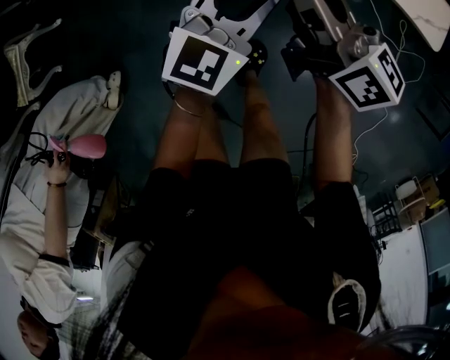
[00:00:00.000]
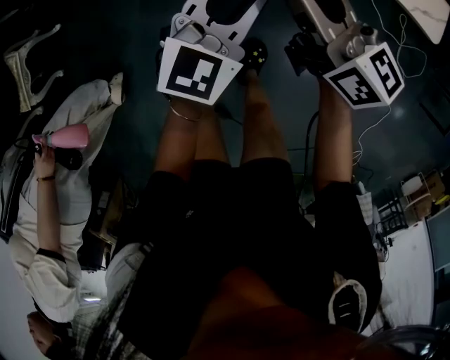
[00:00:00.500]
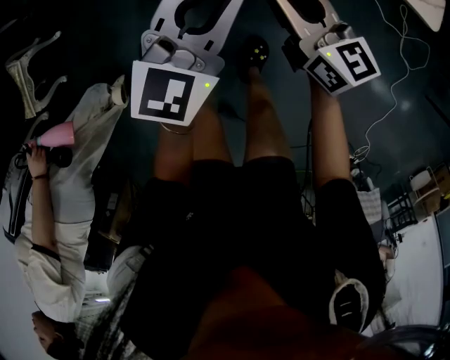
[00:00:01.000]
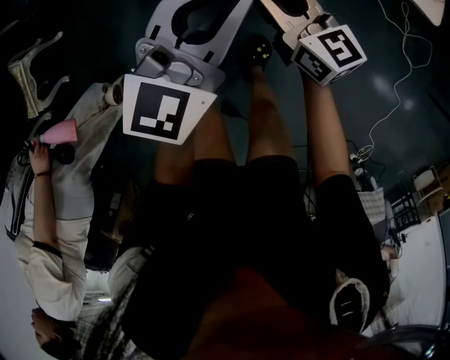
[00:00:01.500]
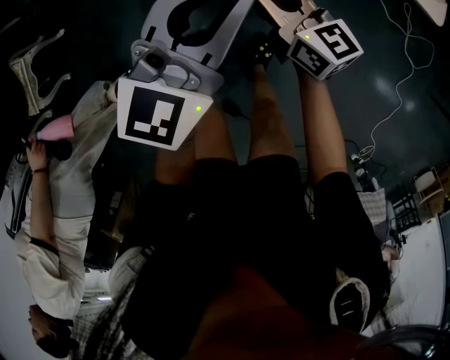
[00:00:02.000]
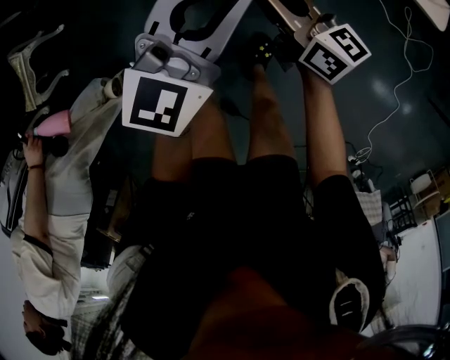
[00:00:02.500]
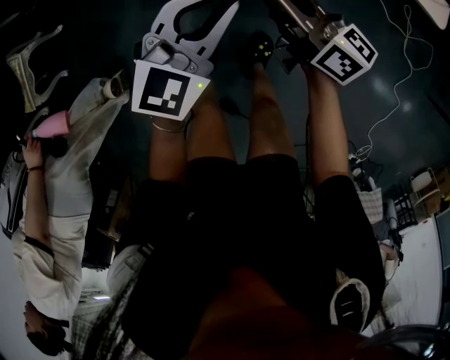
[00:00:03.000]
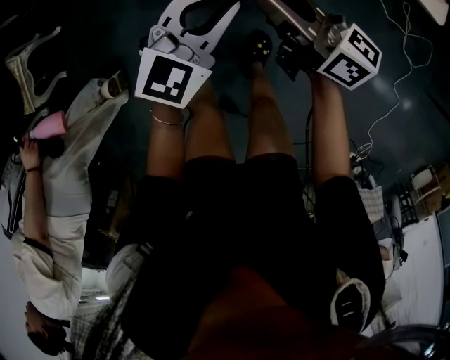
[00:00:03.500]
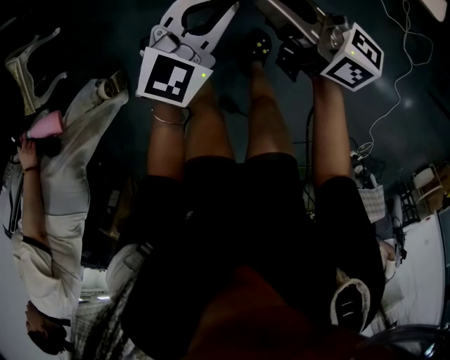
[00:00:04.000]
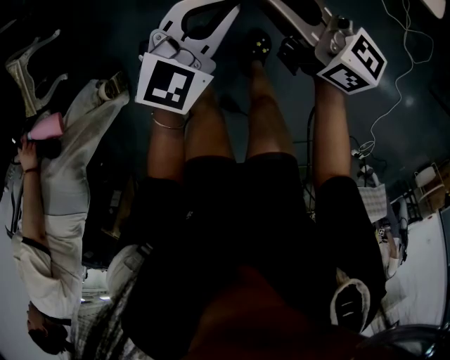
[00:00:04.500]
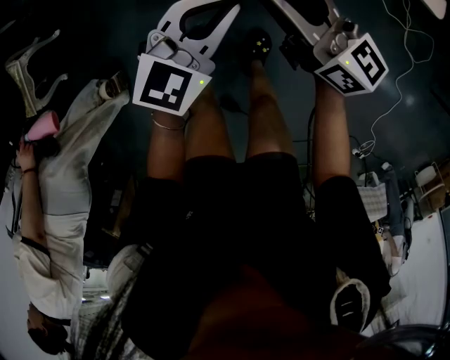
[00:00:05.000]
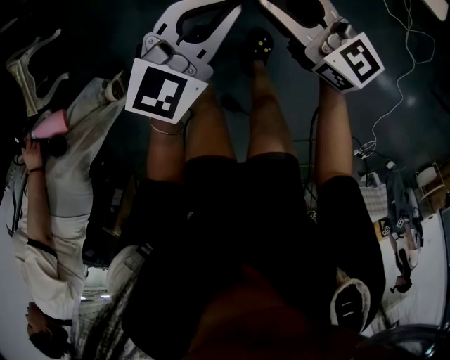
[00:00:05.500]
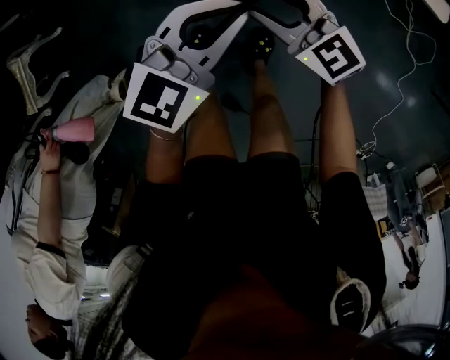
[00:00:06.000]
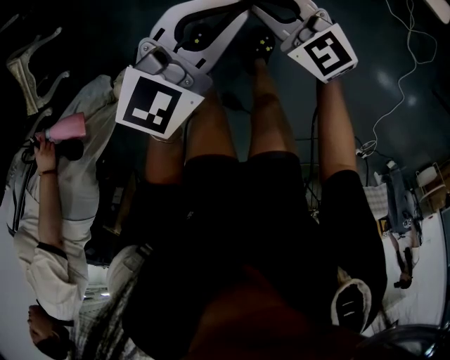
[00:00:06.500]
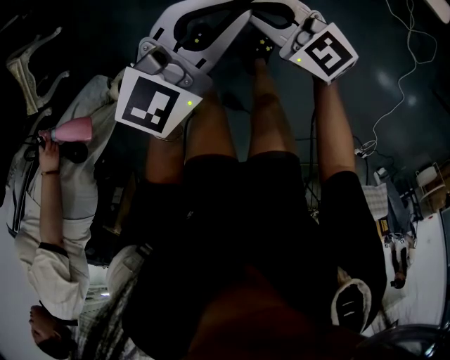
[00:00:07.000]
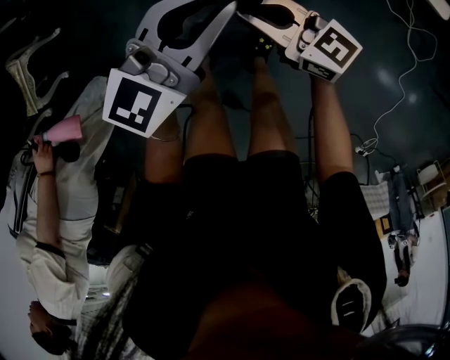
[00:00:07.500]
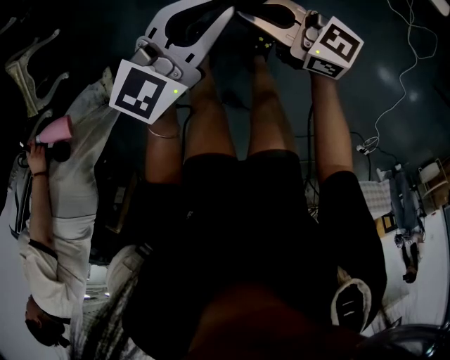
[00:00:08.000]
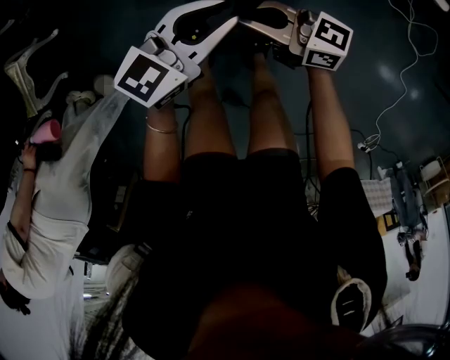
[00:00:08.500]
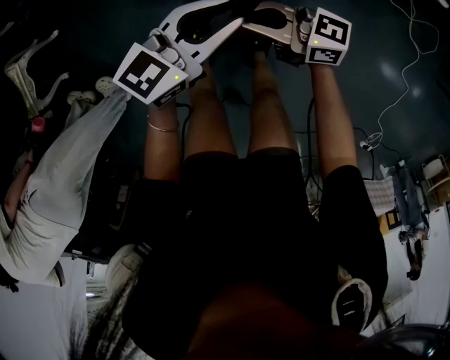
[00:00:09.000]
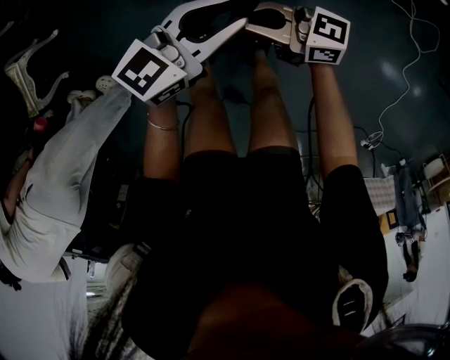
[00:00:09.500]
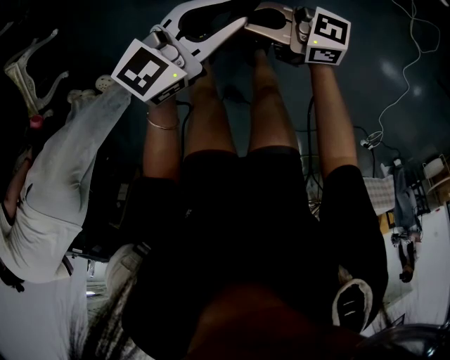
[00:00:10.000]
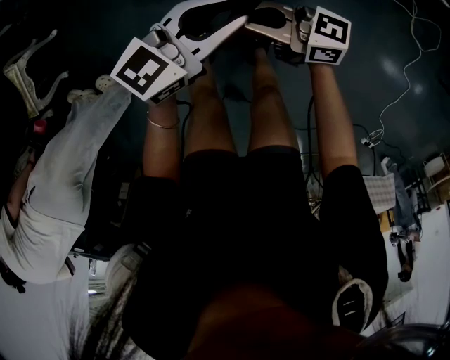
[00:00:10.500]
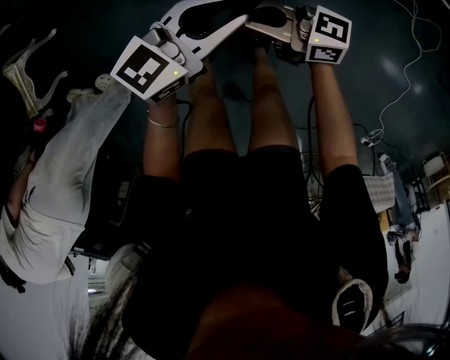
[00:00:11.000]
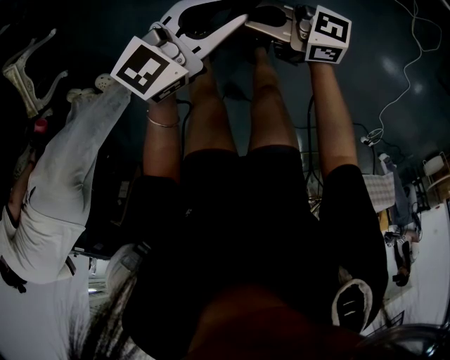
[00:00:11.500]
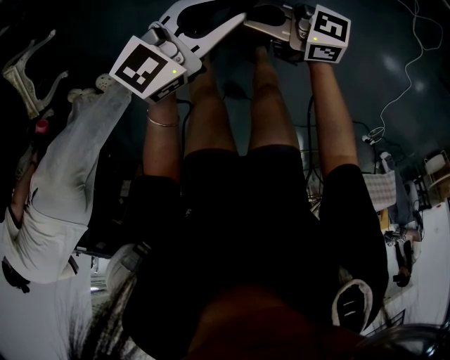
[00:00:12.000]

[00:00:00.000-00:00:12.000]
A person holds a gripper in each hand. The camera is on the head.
00:00:00.000 to 00:00:02.000: The right gripper shifts roughly 10 cm downward; the left gripper goes some 10 cm upward.
00:00:02.000 to 00:00:04.000: The right gripper heads upward, covering some 5 cm, and swivels roughly 30 degrees. Meanwhile the left gripper goes approximately 10 cm downward, and swivels roughly 20 degrees.
00:00:04.000 to 00:00:06.000: The right gripper travels downward by some 5 cm, twists roughly 40 degrees counterclockwise, seen from behind, and opens, while the left gripper changes place by about 5 cm.
00:00:06.000 to 00:00:08.000: The right gripper swivels roughly 40 degrees, and closes its fingers.
00:00:08.000 to 00:00:10.000: The grippers move only a little.
00:00:10.000 to 00:00:12.000: Both grippers stay put.

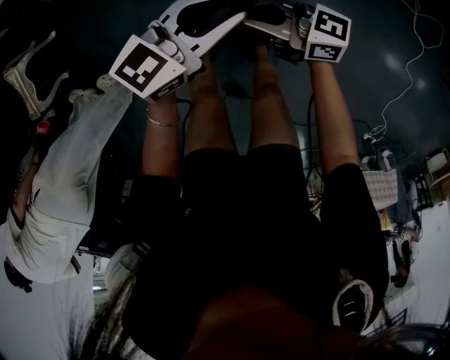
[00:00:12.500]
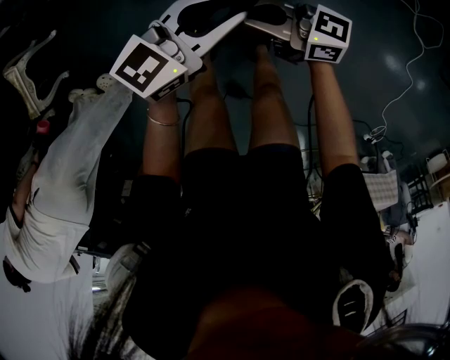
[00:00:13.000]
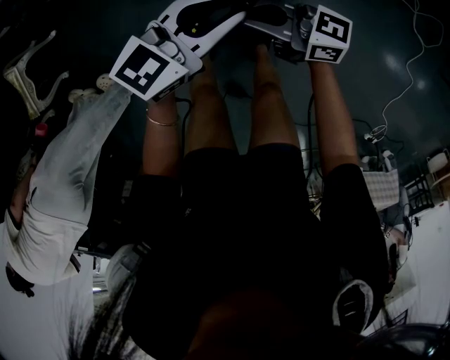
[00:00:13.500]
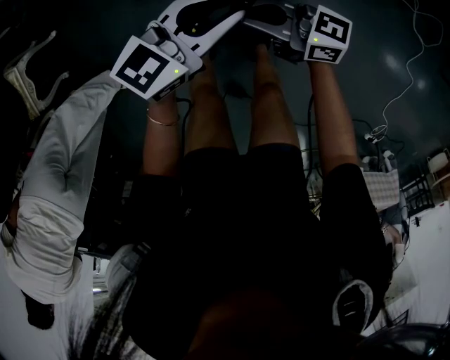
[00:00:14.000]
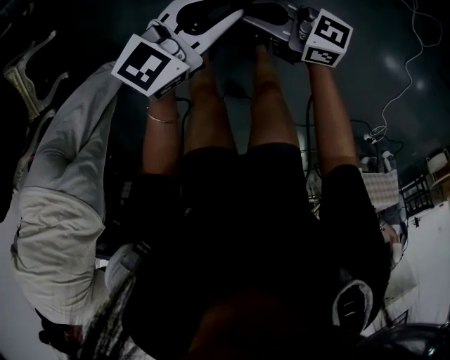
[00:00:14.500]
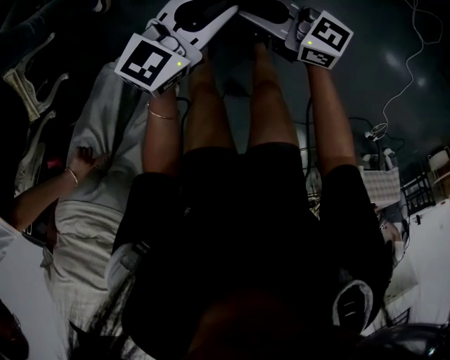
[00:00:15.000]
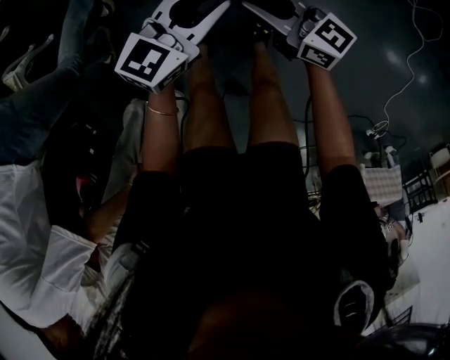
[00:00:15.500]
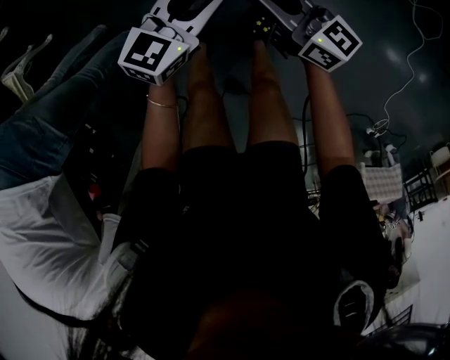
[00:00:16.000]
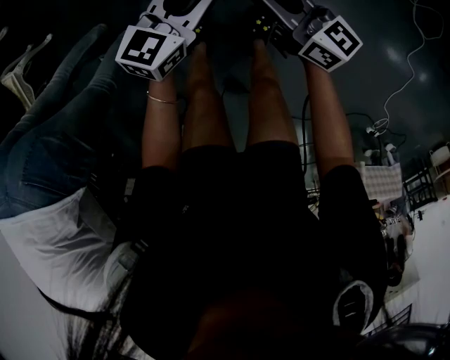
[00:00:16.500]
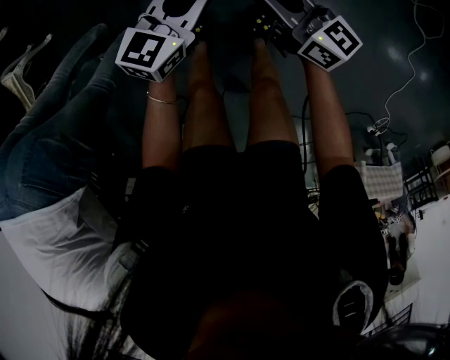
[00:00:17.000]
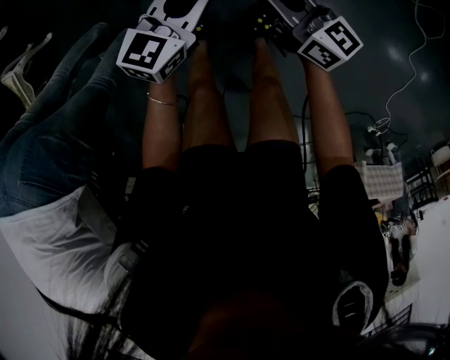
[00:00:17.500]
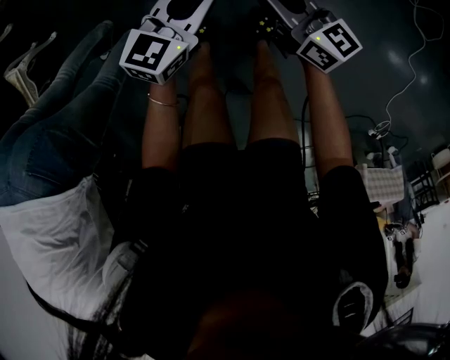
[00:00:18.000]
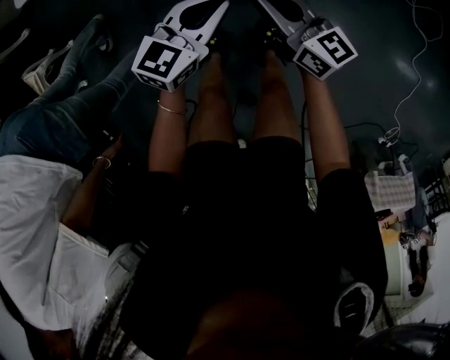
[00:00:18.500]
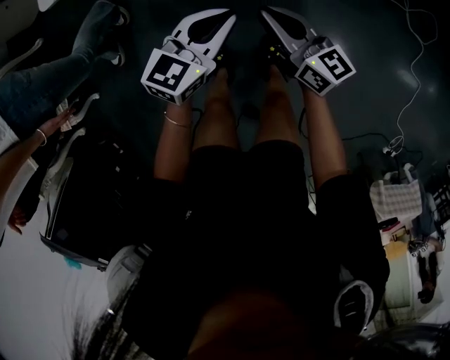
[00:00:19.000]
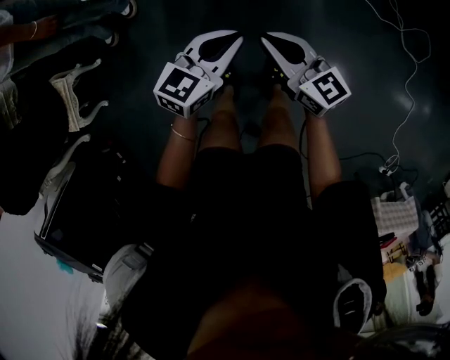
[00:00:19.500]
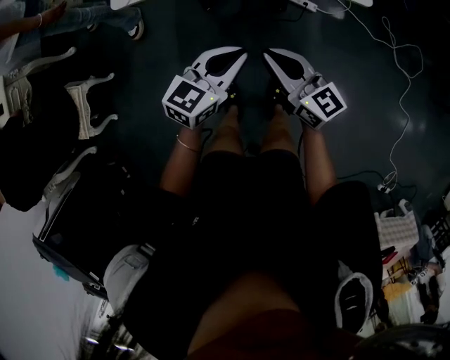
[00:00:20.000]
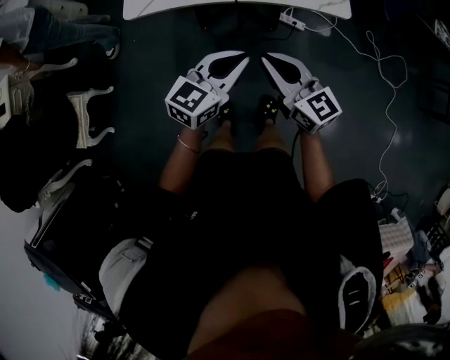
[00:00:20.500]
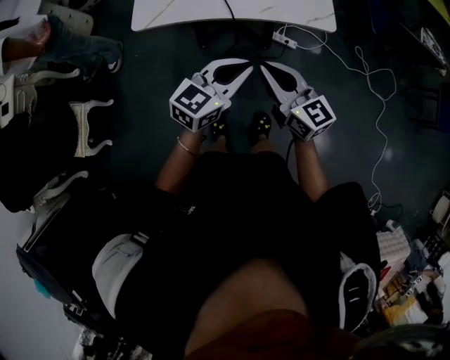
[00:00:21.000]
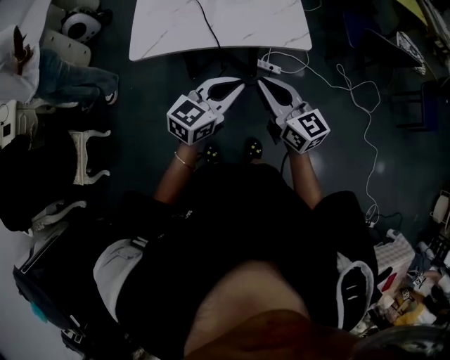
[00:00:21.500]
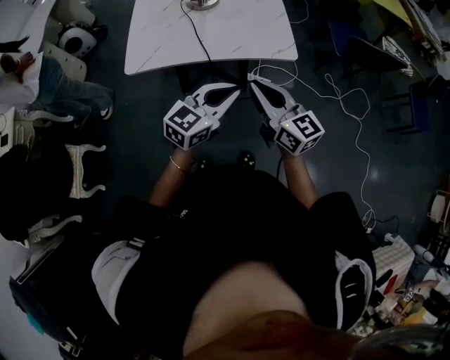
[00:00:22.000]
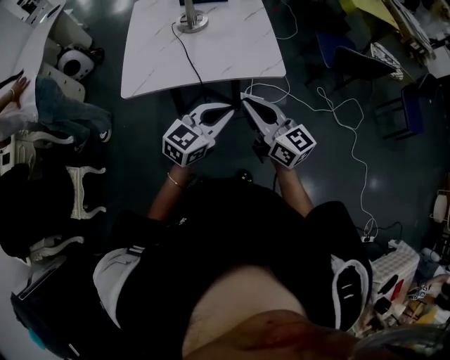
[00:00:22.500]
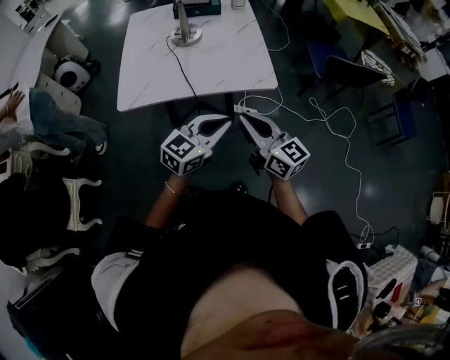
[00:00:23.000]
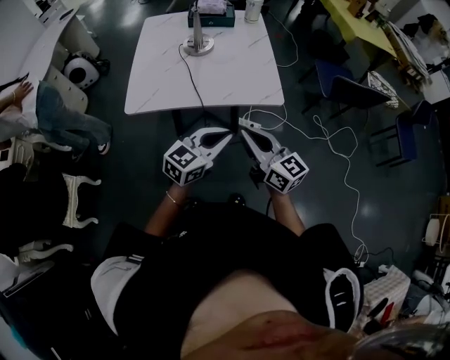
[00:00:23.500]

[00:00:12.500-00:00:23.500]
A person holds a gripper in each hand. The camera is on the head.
00:00:12.500 to 00:00:14.500: There are only small adjustments of the grippers.
00:00:14.500 to 00:00:16.000: The right gripper changes its angle by about 20 degrees, while the left gripper shifts about 5 cm downward.
00:00:16.000 to 00:00:18.000: The grippers stay close to where they were, moving slightly.
00:00:18.000 to 00:00:20.000: The two grippers go approximately 20 cm upward.
00:00:20.000 to 00:00:21.500: The right gripper moves upward, approximately 15 cm. The left gripper travels upward and to the right by some 15 cm.
00:00:21.500 to 00:00:23.500: There are only small adjustments of the grippers.

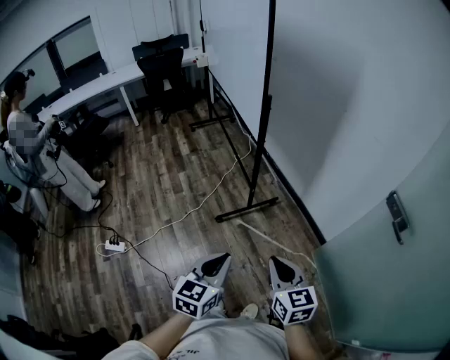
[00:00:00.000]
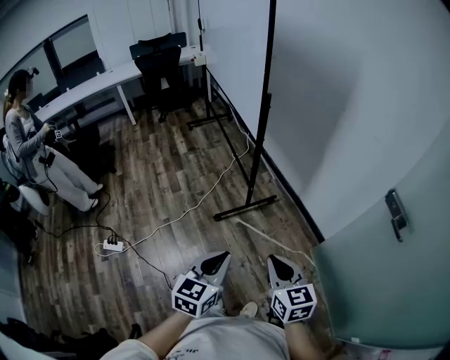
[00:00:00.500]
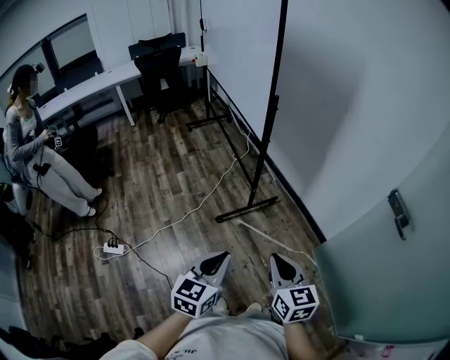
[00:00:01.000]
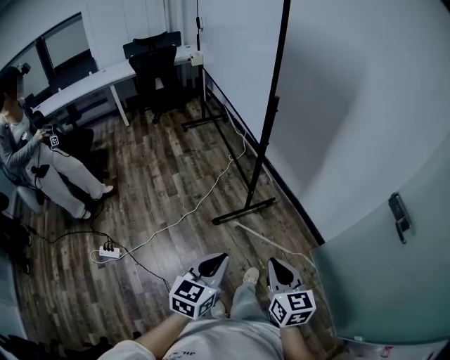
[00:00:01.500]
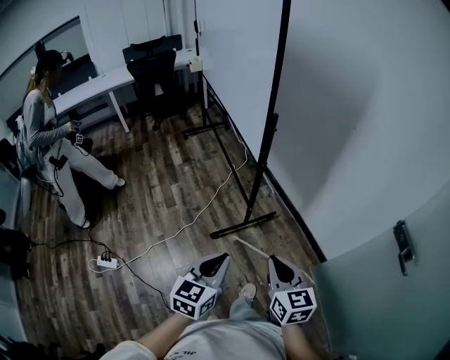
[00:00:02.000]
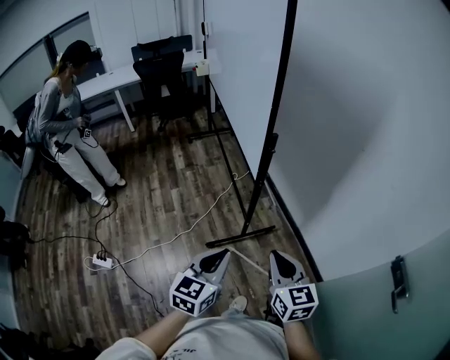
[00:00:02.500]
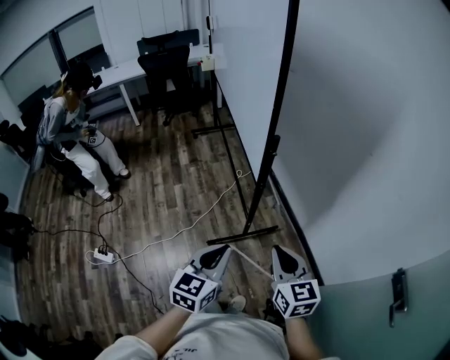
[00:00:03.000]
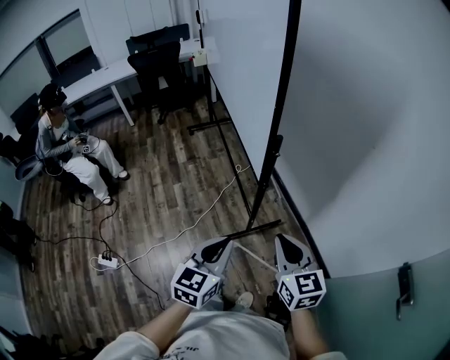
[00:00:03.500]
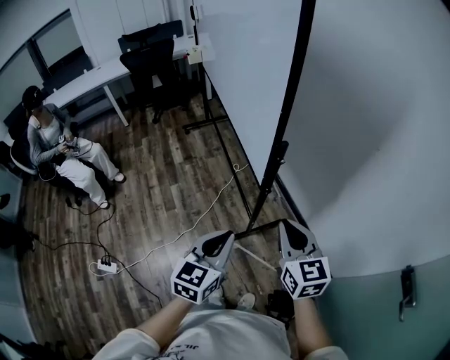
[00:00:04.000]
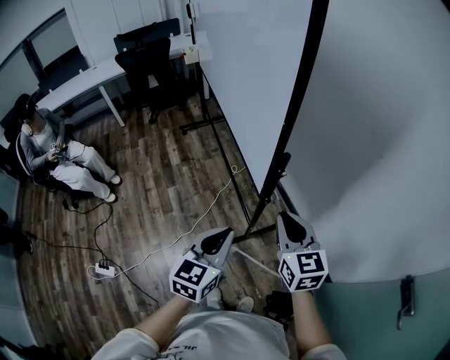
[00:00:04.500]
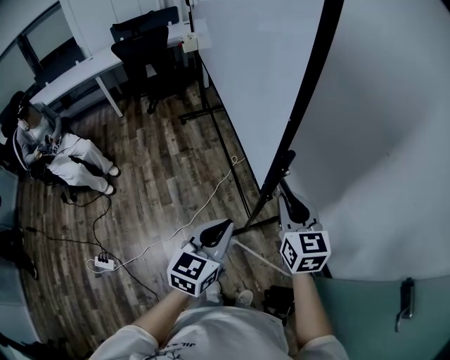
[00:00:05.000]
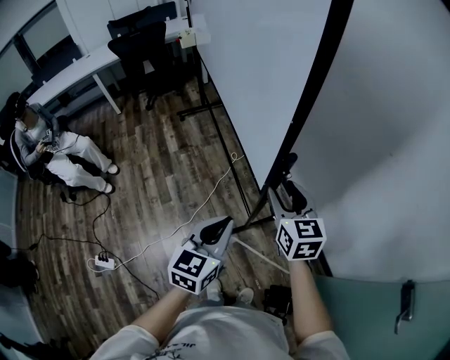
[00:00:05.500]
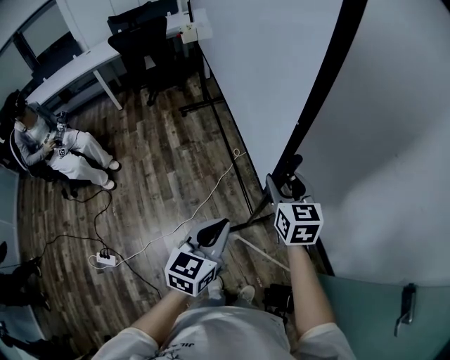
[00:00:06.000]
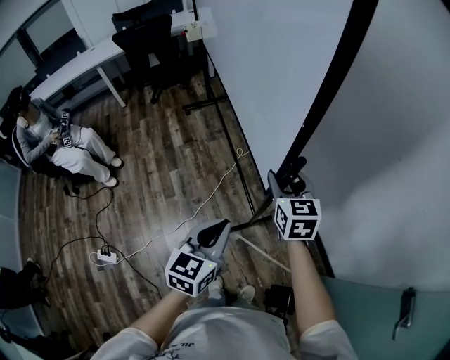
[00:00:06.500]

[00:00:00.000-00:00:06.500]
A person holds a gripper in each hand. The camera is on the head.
00:00:00.000 to 00:00:02.000: Both grippers move forward, about 15 cm.
00:00:02.000 to 00:00:04.500: Both grippers travel together forward, roughly 30 cm.
00:00:04.500 to 00:00:06.500: The right gripper goes some 15 cm forward, and opens its fingers, while the left gripper travels forward by about 5 cm.
